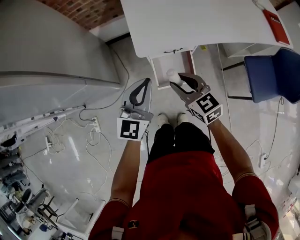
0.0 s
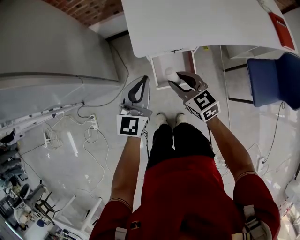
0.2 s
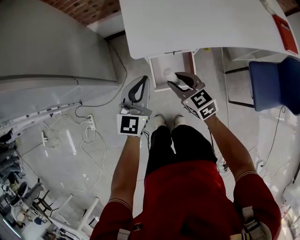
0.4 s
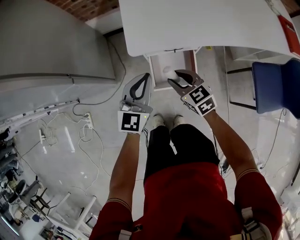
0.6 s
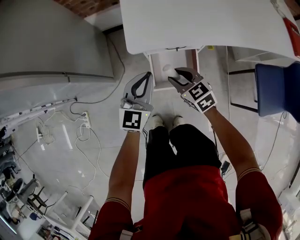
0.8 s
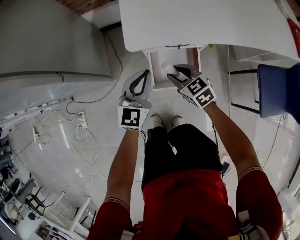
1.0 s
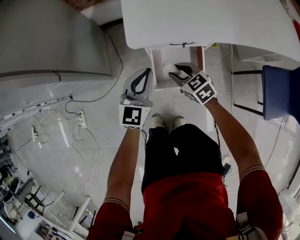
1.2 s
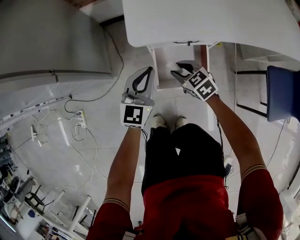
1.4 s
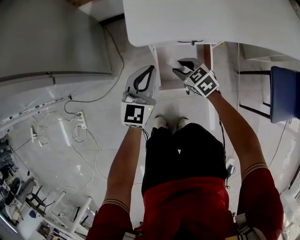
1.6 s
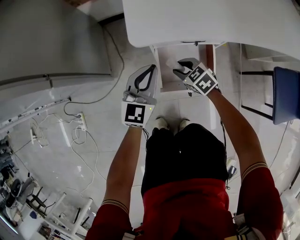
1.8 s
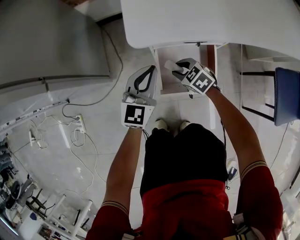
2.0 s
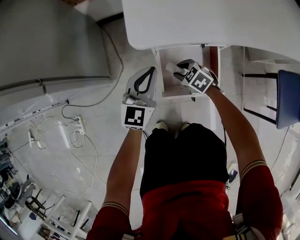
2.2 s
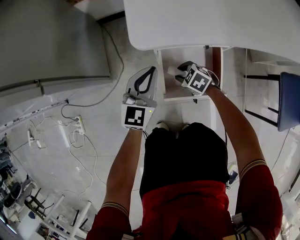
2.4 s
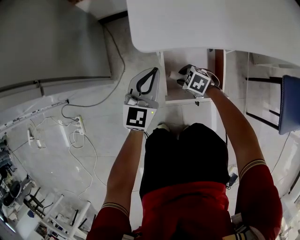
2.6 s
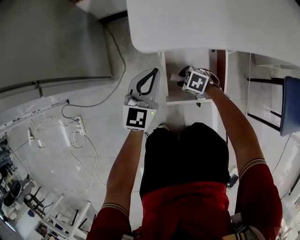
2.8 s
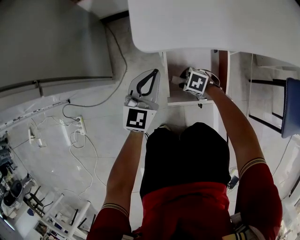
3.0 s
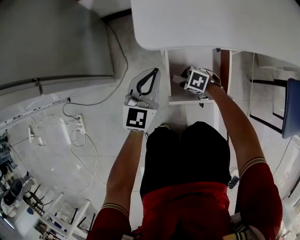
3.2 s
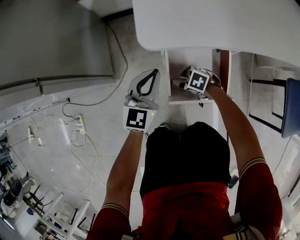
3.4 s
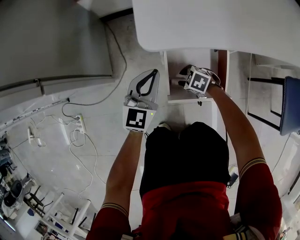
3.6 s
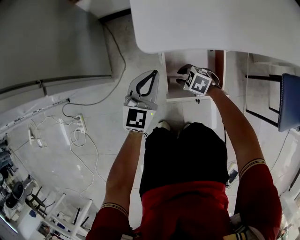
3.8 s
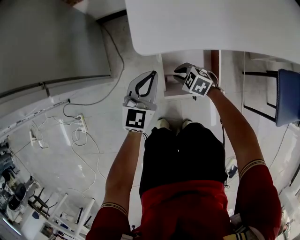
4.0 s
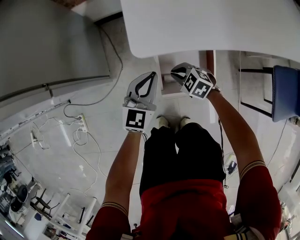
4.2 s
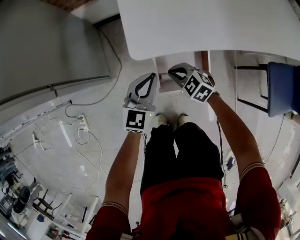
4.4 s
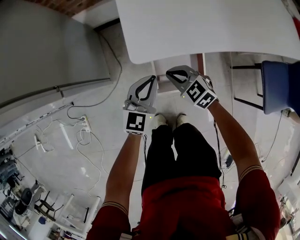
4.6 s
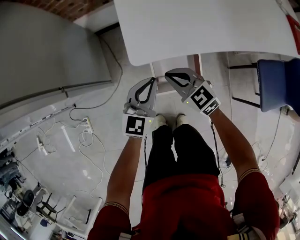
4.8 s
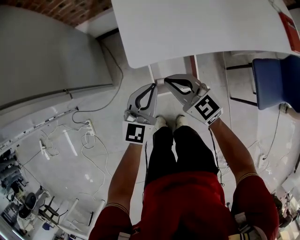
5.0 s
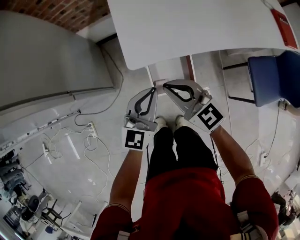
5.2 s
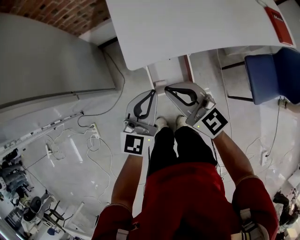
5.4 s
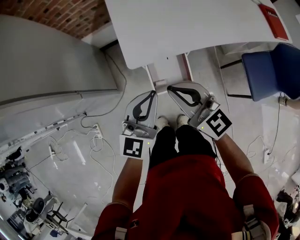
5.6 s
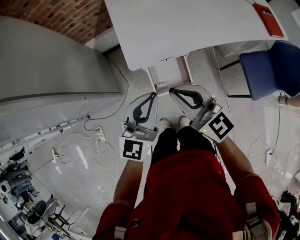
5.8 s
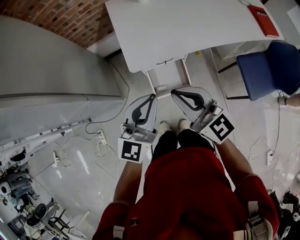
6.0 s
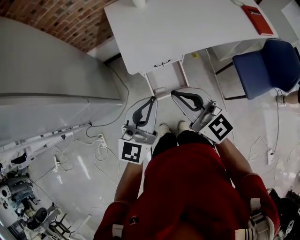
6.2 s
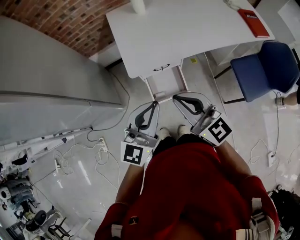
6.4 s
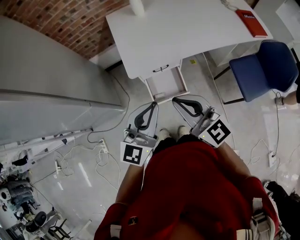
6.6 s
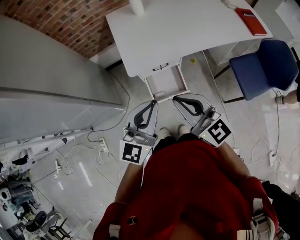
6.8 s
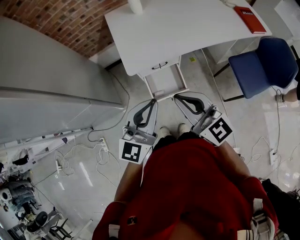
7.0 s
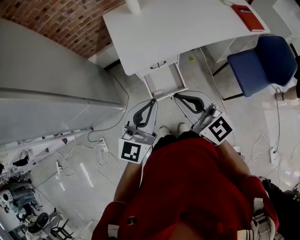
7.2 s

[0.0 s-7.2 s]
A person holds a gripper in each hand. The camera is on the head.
0.0 to 1.4 s: Both grippers move downward, roughly 30 cm. The right gripper swivels approximately 20 degrees.
1.4 to 2.8 s: The right gripper travels downward by roughly 20 cm, and swivels approximately 30 degrees. The left gripper heads downward, covering roughly 10 cm.
2.8 to 4.4 s: The right gripper is displaced upward by roughly 20 cm, rotates some 30 degrees, and closes its fingers; the left gripper is displaced upward by approximately 10 cm.
4.4 to 5.8 s: The grippers both shift upward by about 40 cm. The right gripper tilts its fingers some 50 degrees upward.
5.8 to 7.2 s: The right gripper travels backward by about 10 cm. The left gripper moves backward and upward, roughly 10 cm.

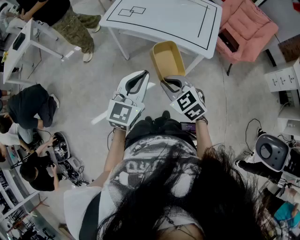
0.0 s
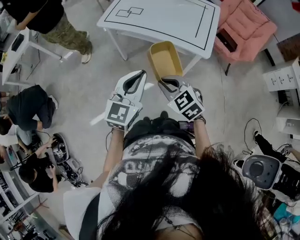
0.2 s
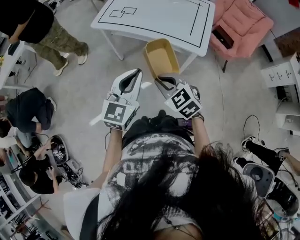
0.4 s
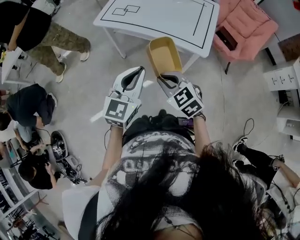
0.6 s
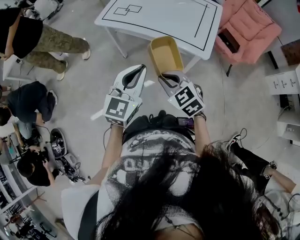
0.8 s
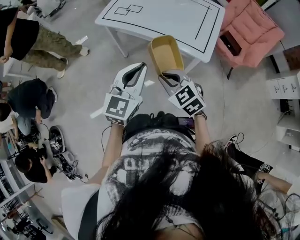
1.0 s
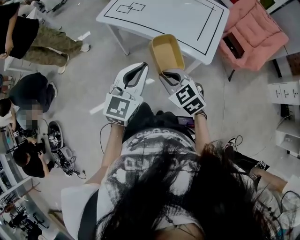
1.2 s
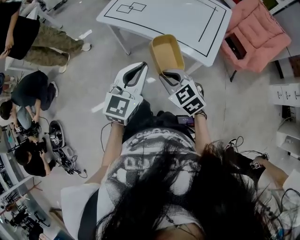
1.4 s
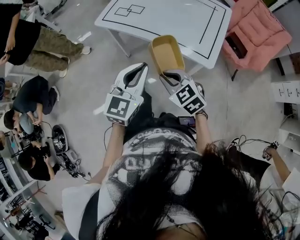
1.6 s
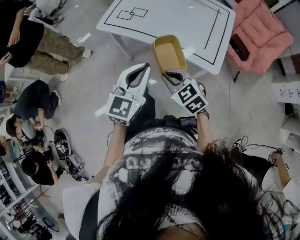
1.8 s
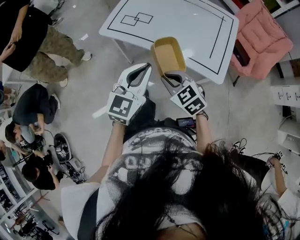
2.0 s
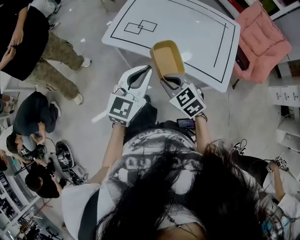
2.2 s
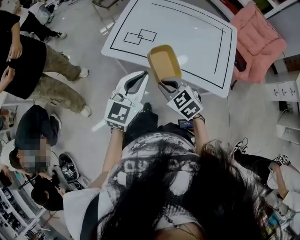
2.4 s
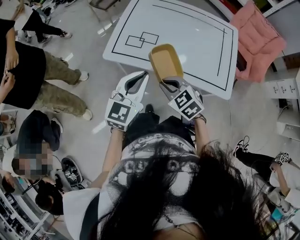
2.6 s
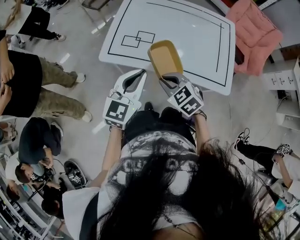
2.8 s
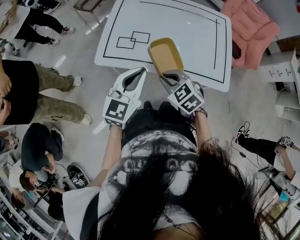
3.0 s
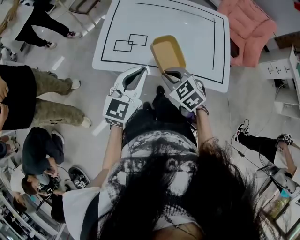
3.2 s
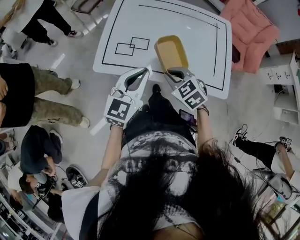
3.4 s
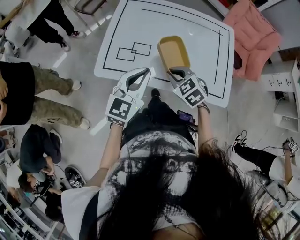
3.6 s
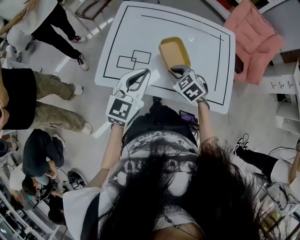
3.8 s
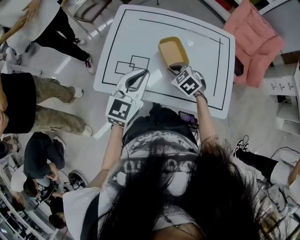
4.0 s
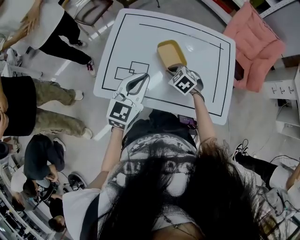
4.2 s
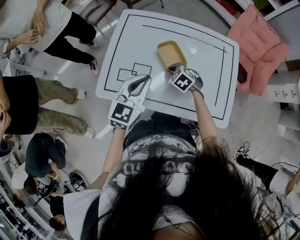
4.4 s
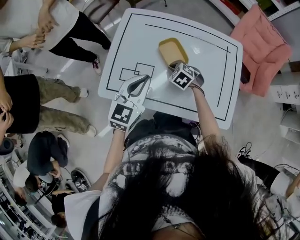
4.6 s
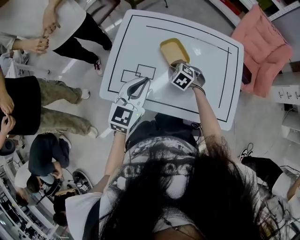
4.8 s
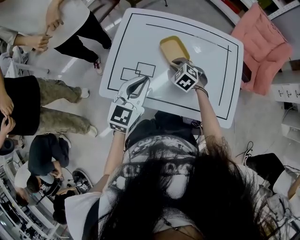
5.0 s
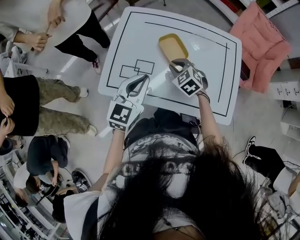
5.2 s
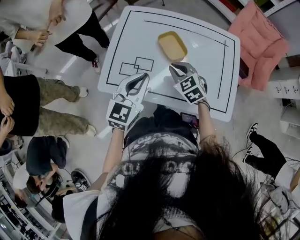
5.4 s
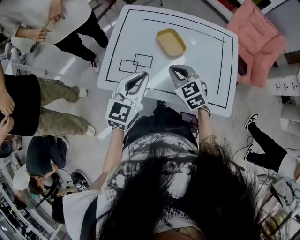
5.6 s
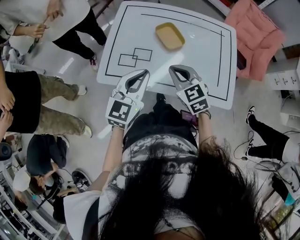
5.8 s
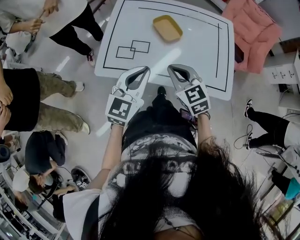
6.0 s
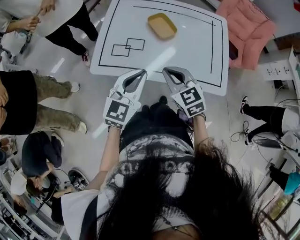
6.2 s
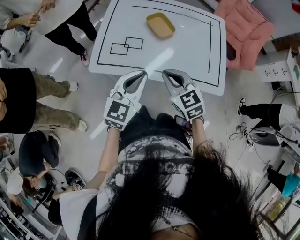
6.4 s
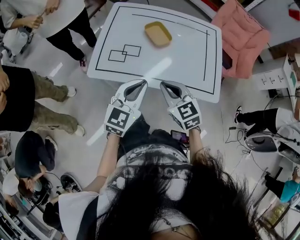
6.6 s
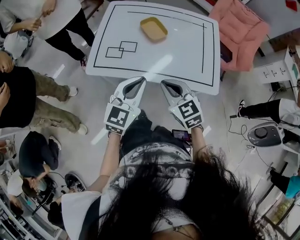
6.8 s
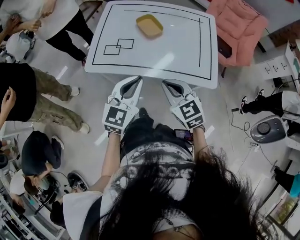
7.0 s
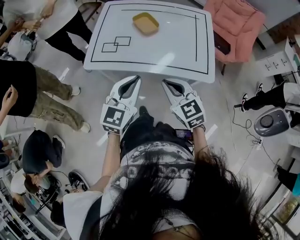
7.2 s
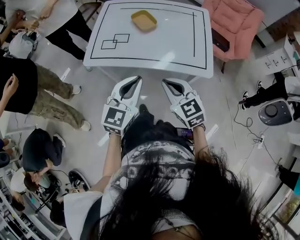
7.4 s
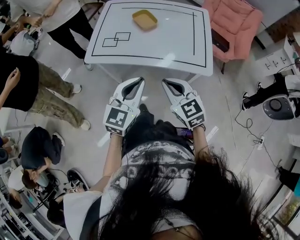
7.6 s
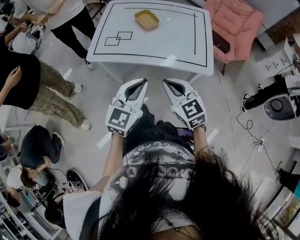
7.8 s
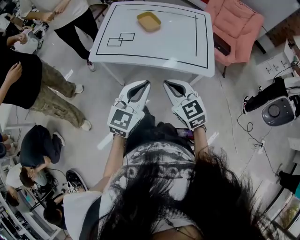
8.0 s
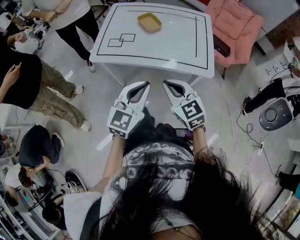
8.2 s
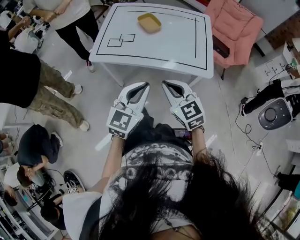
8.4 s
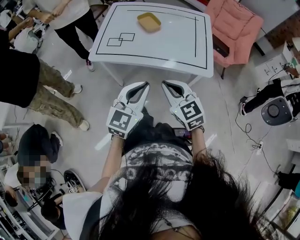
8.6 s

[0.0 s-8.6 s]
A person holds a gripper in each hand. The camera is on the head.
0.0 to 1.4 s: The grippers both shift forward and to the right by about 10 cm.
1.4 to 2.8 s: The grippers both shift forward and to the left by roughly 35 cm.
2.8 to 4.4 s: The left gripper is displaced forward by roughly 20 cm; the right gripper moves forward and downward, about 30 cm.
4.4 to 5.8 s: The left gripper shifts about 10 cm backward. Meanwhile the right gripper moves upward and backward, some 20 cm, and rotates about 30 degrees.
5.8 to 7.2 s: The two grippers go some 20 cm backward and to the right.
7.2 to 8.6 s: Both grippers move backward, approximately 10 cm.

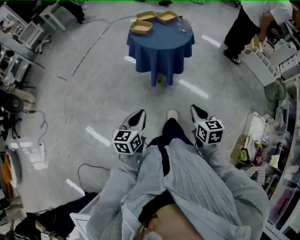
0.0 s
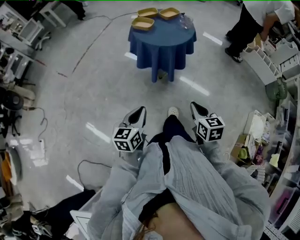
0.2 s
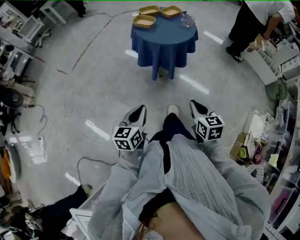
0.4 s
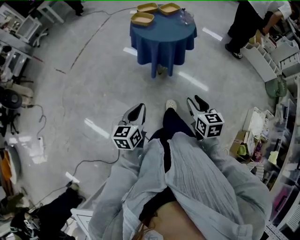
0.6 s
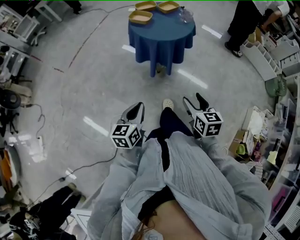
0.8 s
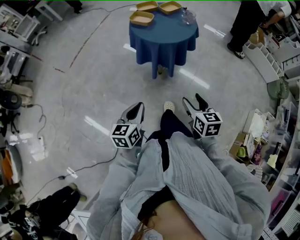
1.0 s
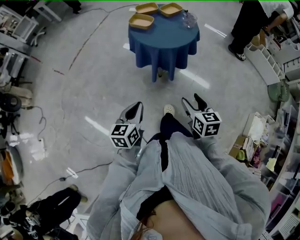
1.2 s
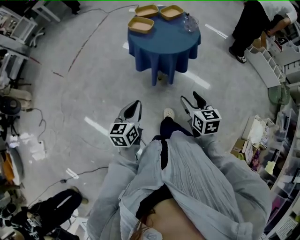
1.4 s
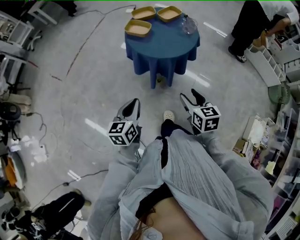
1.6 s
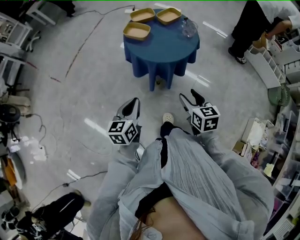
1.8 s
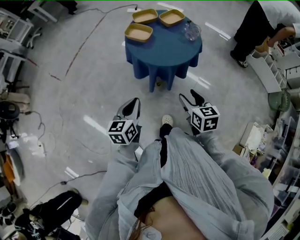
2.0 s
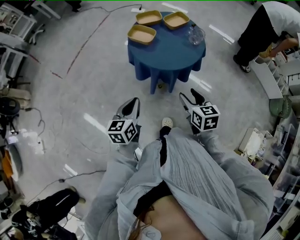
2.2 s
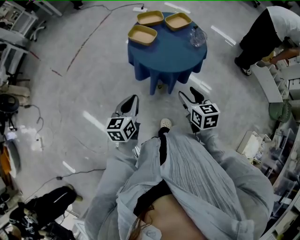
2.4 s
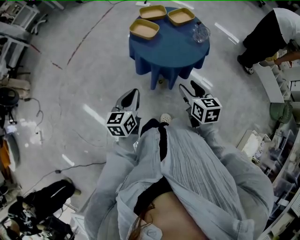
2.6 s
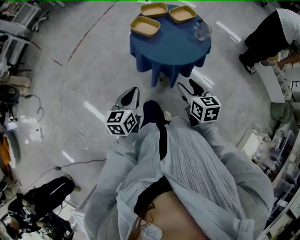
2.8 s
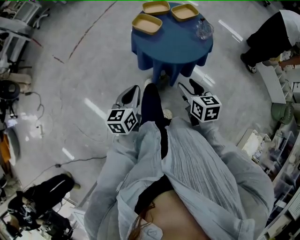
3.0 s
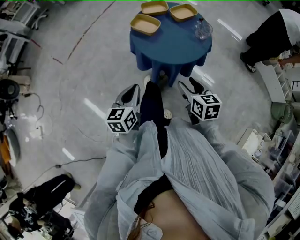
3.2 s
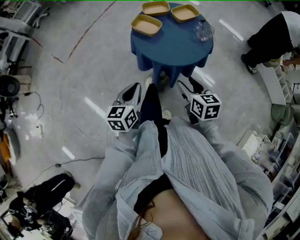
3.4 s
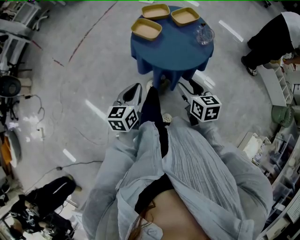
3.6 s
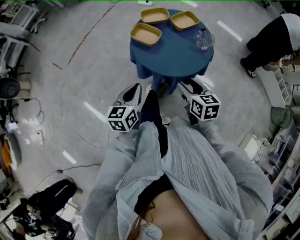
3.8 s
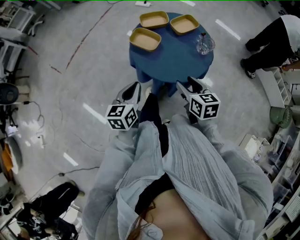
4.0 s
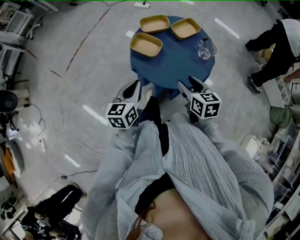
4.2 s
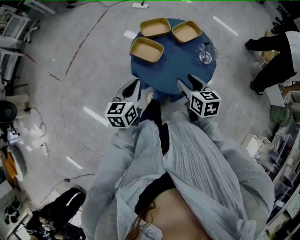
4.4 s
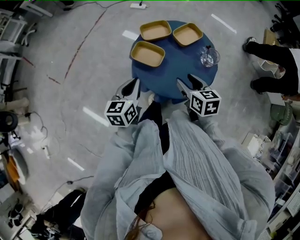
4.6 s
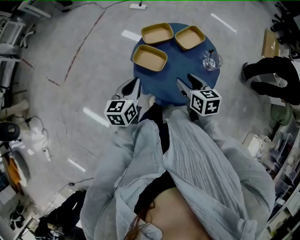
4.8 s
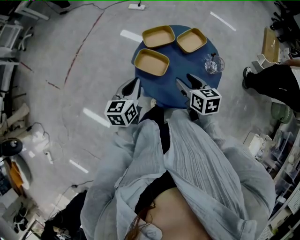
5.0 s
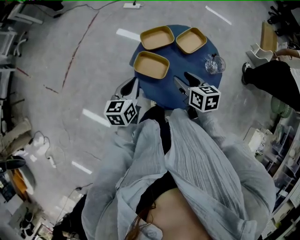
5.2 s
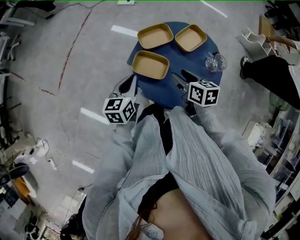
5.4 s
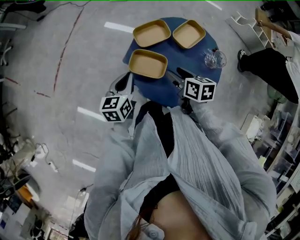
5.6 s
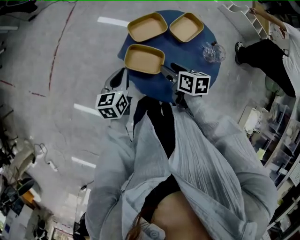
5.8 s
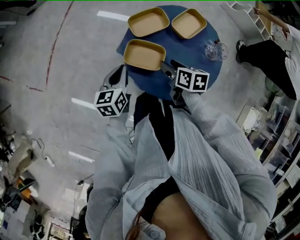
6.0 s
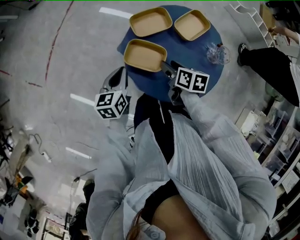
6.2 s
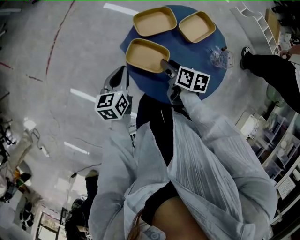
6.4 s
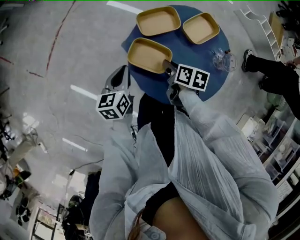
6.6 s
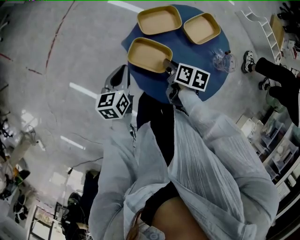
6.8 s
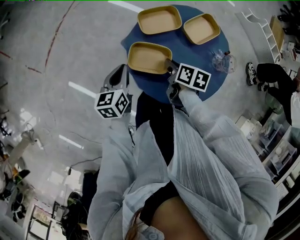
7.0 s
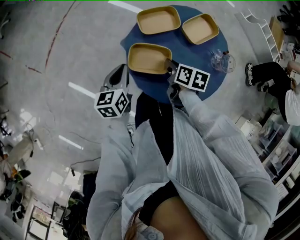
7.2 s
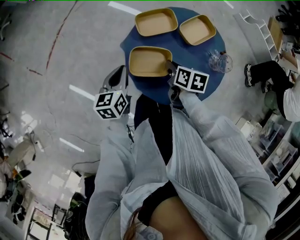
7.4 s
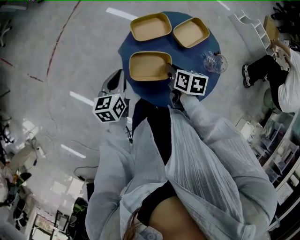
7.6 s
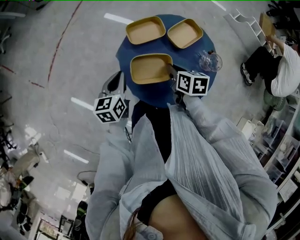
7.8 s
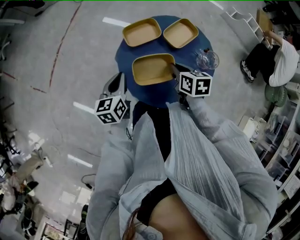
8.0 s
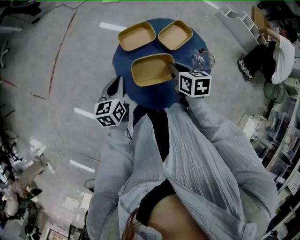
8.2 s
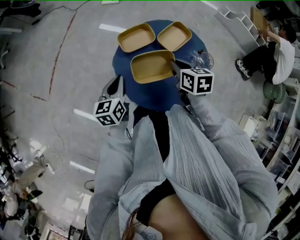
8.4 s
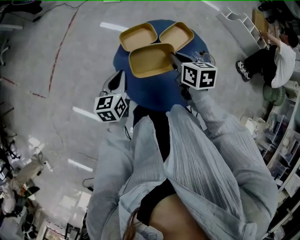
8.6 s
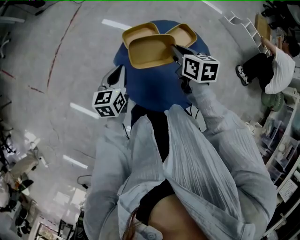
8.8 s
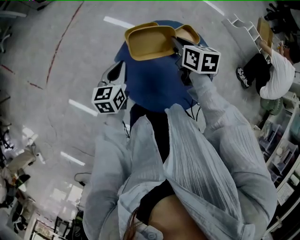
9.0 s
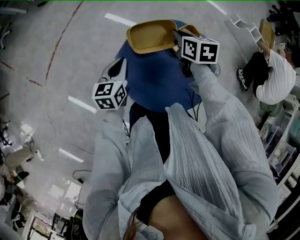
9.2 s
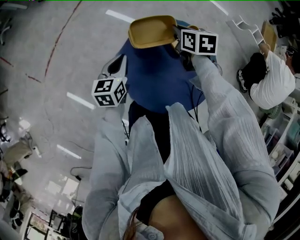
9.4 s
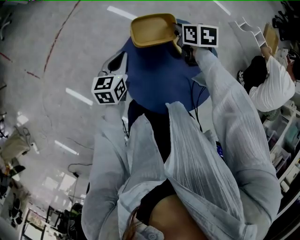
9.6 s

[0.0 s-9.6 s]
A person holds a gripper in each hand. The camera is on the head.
0.0 to 1.6 s: The grippers both shift forward by roughly 20 cm. The right gripper opens its fingers.
1.6 to 3.2 s: Both grippers travel together forward, some 10 cm.
3.2 to 4.8 s: Both grippers travel together forward, about 25 cm.
4.8 to 6.4 s: The right gripper heads downward, forward and to the left, covering roughly 15 cm, and swivels some 30 degrees. The left gripper travels downward and forward by roughly 15 cm.
6.4 to 8.0 s: The right gripper travels to the right and upward by about 10 cm, and closes up.
8.0 to 9.6 s: The left gripper travels forward by approximately 10 cm. Meanwhile the right gripper goes roughly 20 cm forward.
